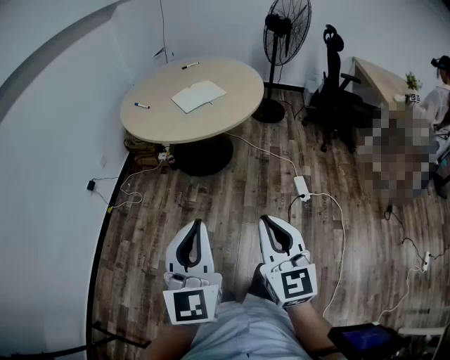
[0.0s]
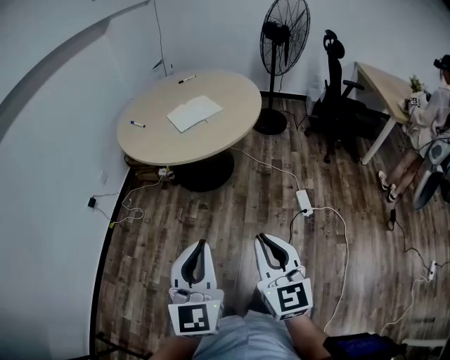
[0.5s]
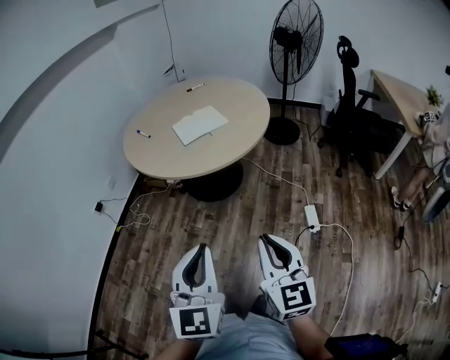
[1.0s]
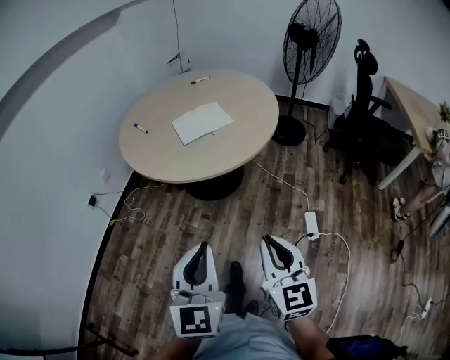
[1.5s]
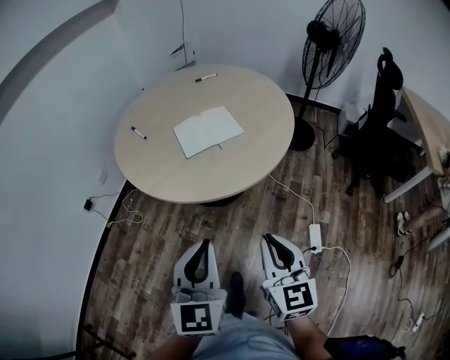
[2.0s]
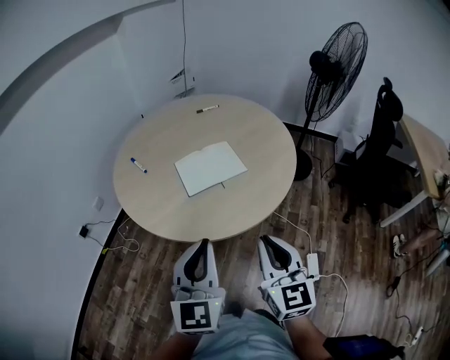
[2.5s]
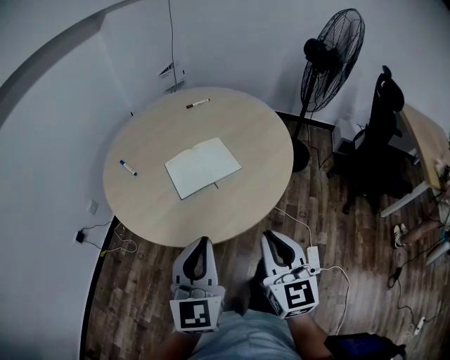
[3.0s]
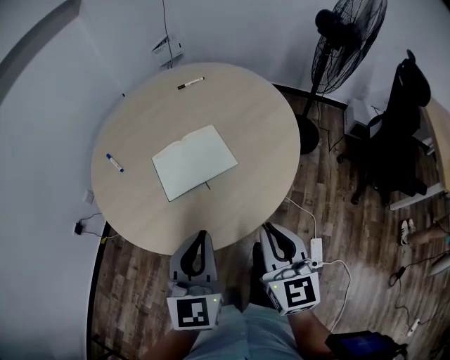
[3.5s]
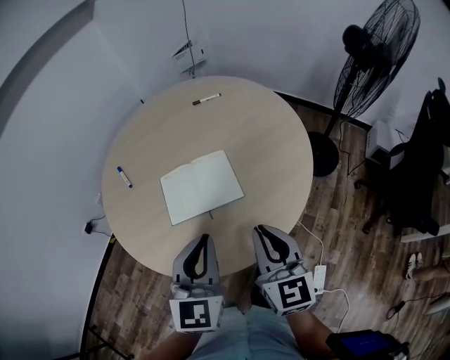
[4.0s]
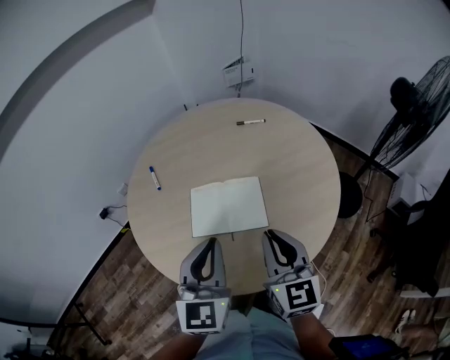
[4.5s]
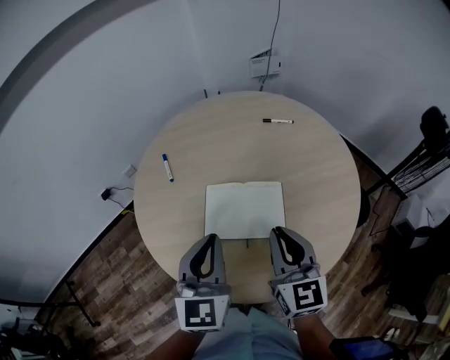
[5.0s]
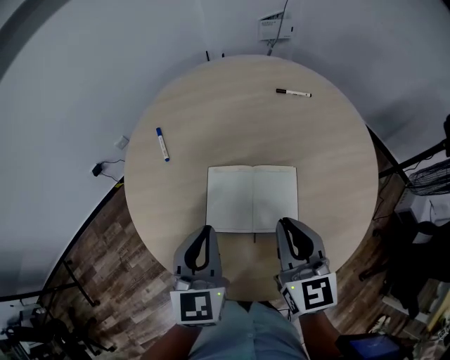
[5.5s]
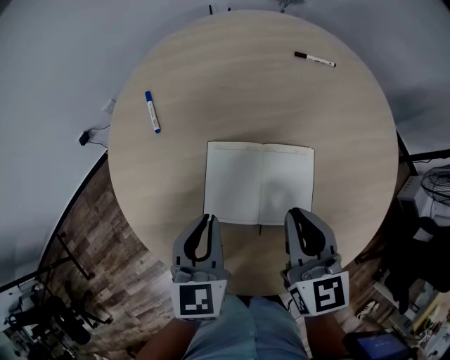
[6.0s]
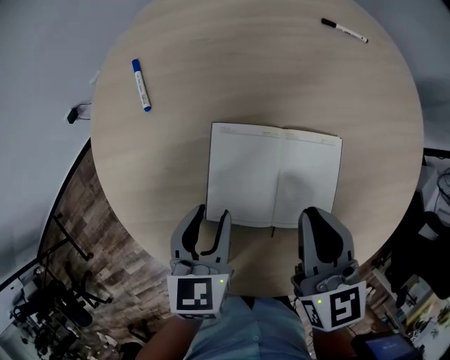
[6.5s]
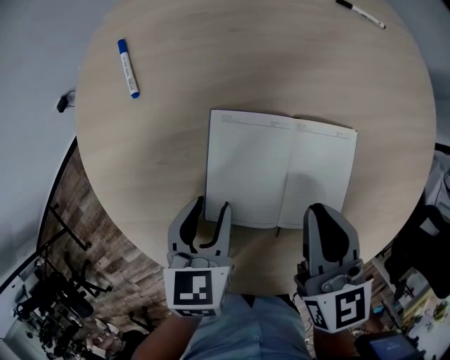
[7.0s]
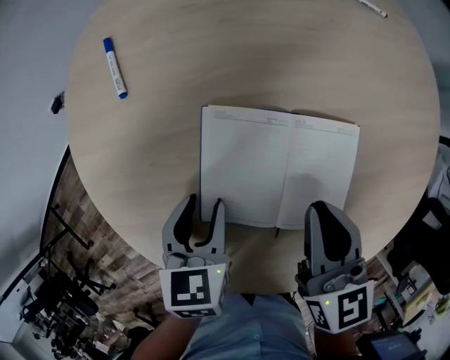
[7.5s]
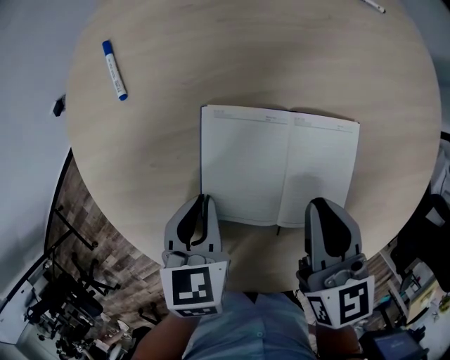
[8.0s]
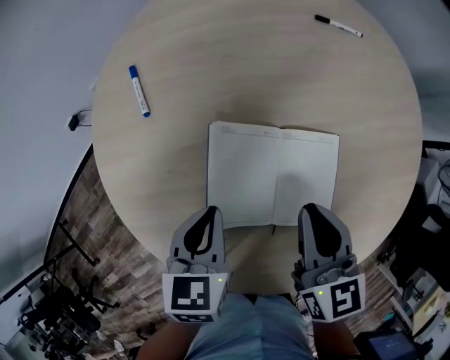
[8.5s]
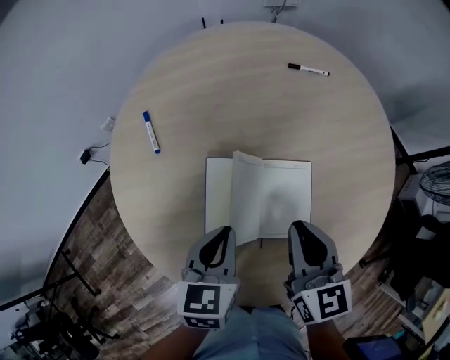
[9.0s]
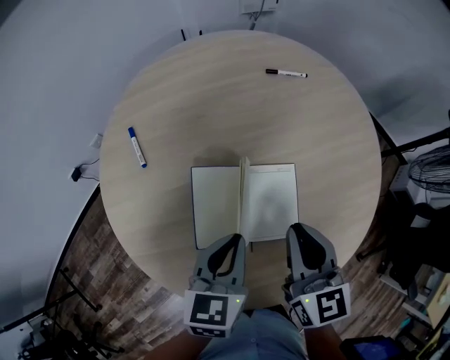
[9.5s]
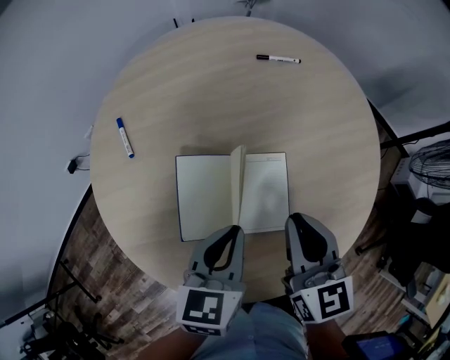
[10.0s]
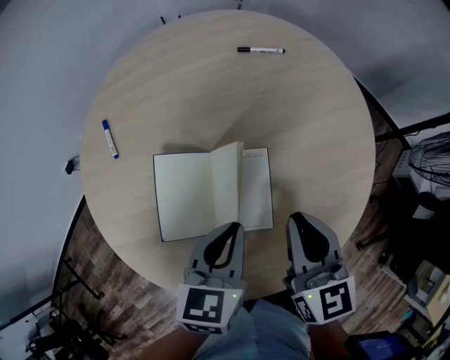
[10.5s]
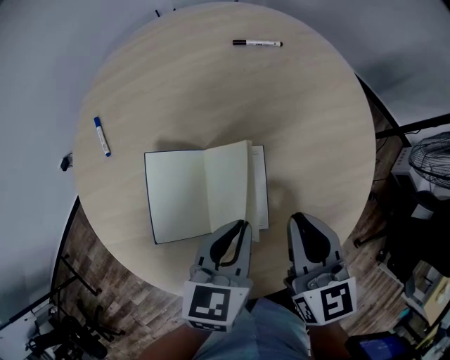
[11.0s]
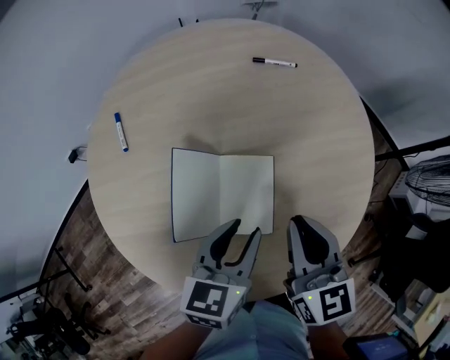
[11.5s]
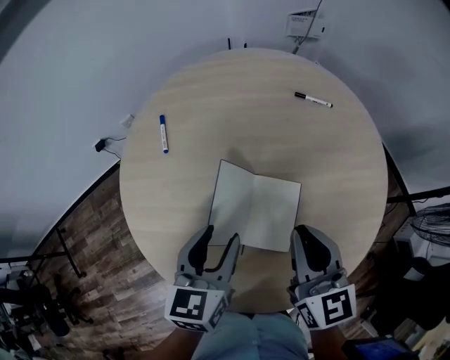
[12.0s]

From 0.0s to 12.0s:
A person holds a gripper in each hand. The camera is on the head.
From 0.0s to 2.0s: The two grippers travel together, forward, approximately 40 cm.
From 2.0s to 4.0s: The pair of grippers is taken forward, about 40 cm.
From 4.0s to 6.0s: The right gripper moves forward and downward, some 30 cm, and rotates approximately 20 degrees. Meanwhile the left gripper is displaced forward, downward and to the left by some 30 cm, and rotates some 30 degrees.
From 6.0s to 8.0s: The grippers both shift downward by some 15 cm. The left gripper turns by roughly 20 degrees, and opens, then closes again.
From 8.0s to 10.0s: The right gripper goes some 15 cm upward and to the right, while the left gripper heads upward and to the right, covering about 20 cm, and swivels roughly 30 degrees.
From 10.0s to 12.0s: The left gripper moves some 10 cm to the right and comes back, and opens. The right gripper reaches approximately 10 cm to the right, then returns.

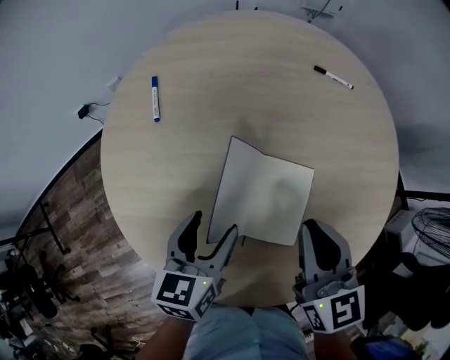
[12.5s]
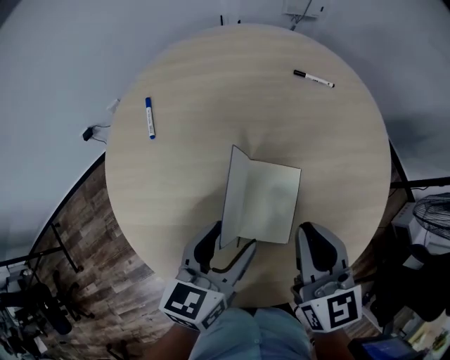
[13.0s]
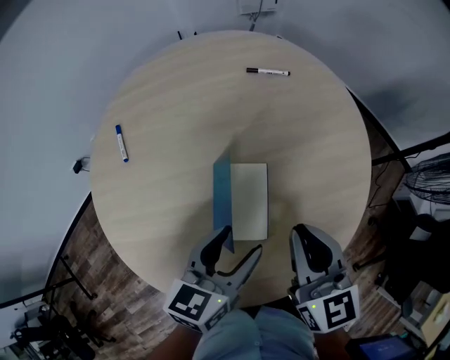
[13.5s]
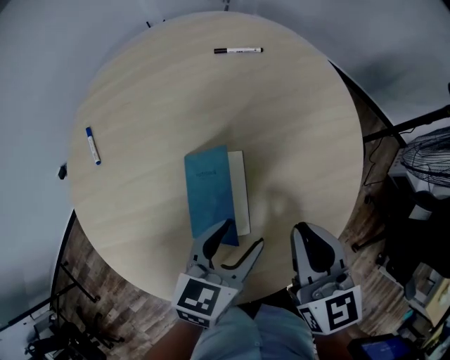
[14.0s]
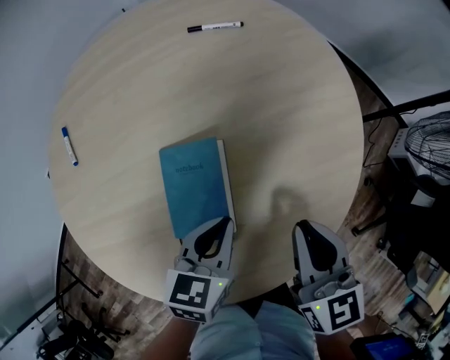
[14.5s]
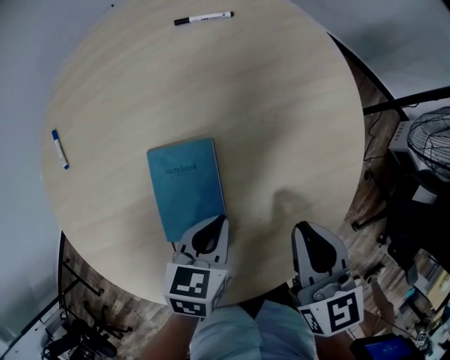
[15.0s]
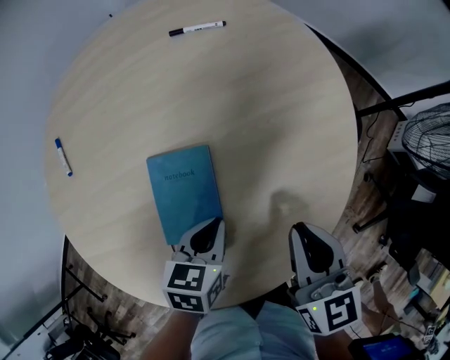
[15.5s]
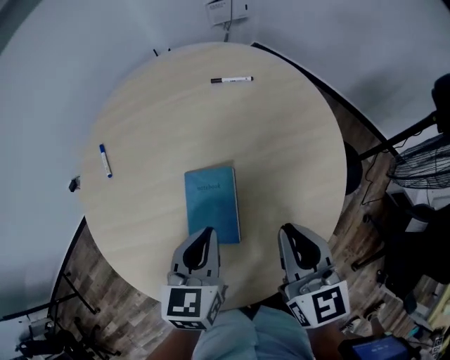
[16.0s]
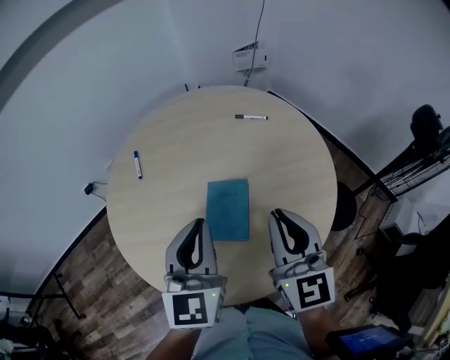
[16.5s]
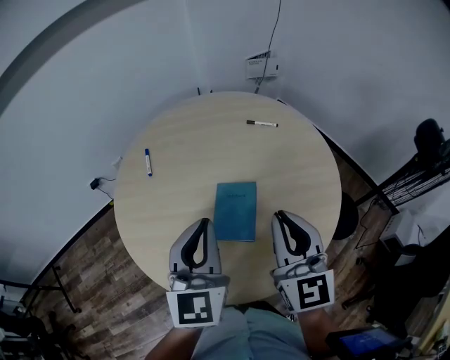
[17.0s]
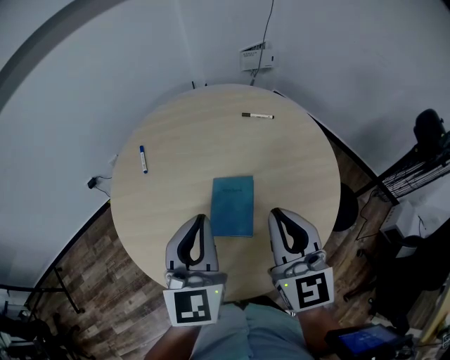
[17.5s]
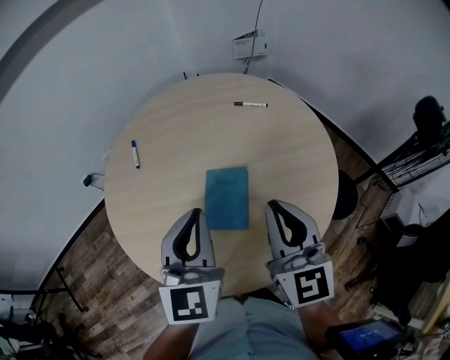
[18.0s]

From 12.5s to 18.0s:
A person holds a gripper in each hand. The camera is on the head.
From 12.5s to 14.5s: The grippers both shift to the right by roughly 20 cm. The left gripper turns by approximately 30 degrees, and closes up. The right gripper turns by some 20 degrees.
From 14.5s to 16.0s: Both grippers move upward, approximately 10 cm. The left gripper rotates about 20 degrees.
From 16.0s to 18.0s: The left gripper travels upward by roughly 15 cm, and turns by some 30 degrees; the right gripper goes roughly 15 cm upward and to the left, and turns by approximately 20 degrees.

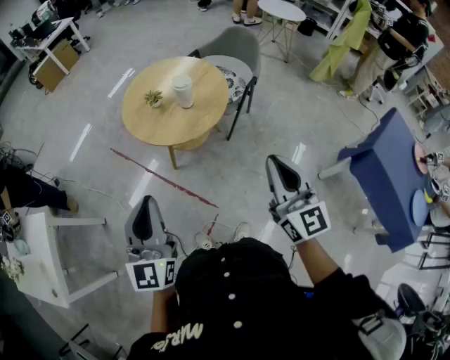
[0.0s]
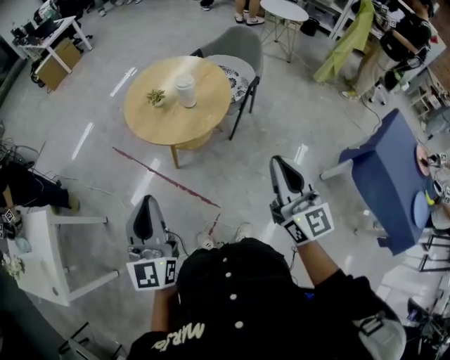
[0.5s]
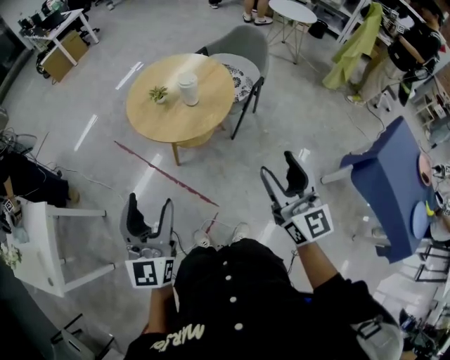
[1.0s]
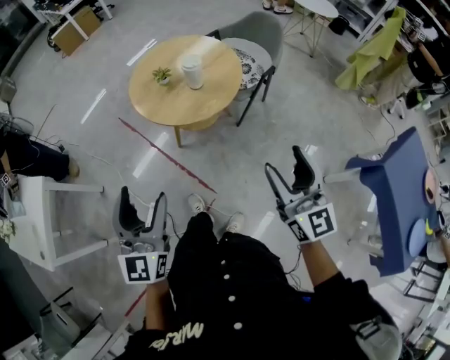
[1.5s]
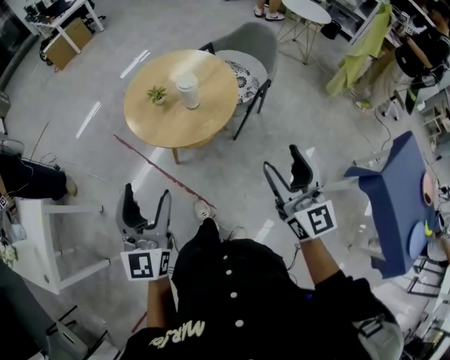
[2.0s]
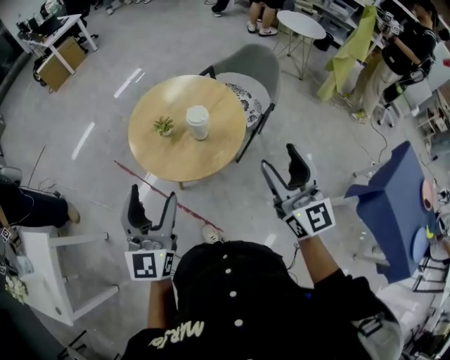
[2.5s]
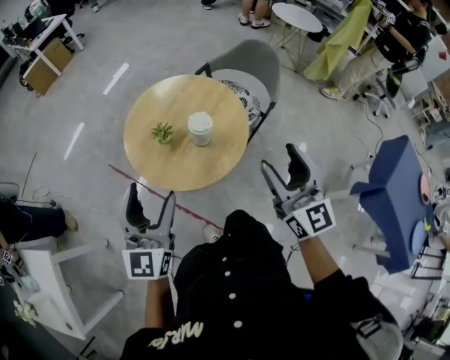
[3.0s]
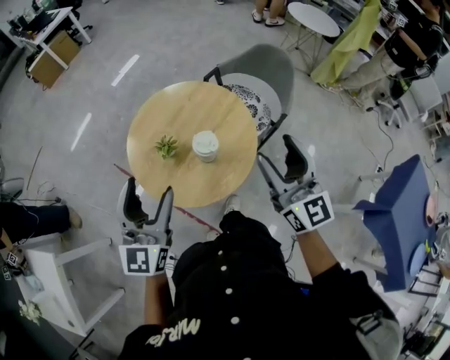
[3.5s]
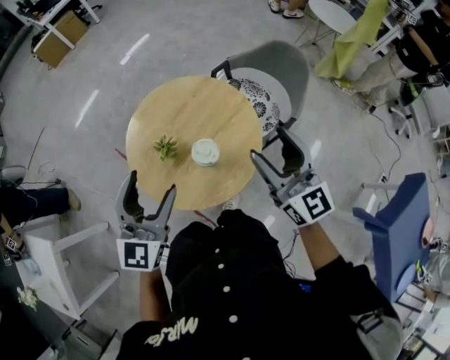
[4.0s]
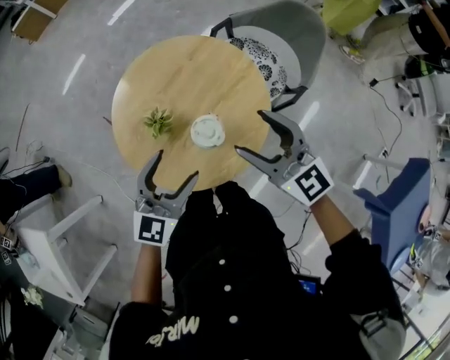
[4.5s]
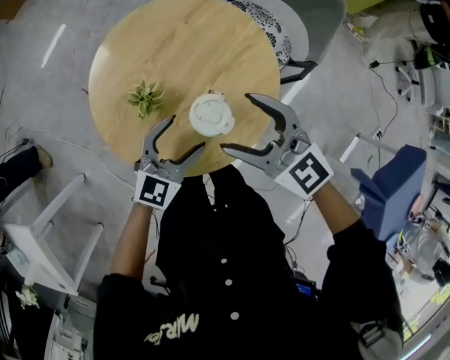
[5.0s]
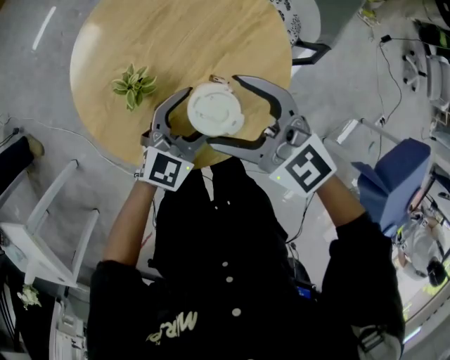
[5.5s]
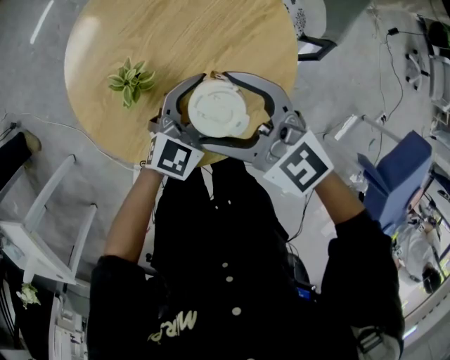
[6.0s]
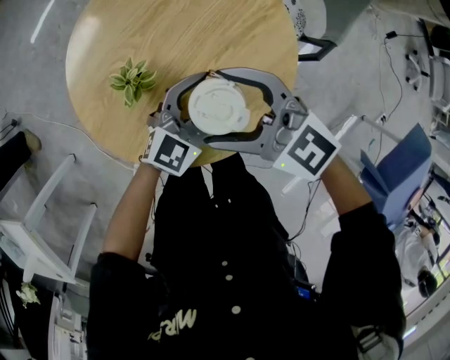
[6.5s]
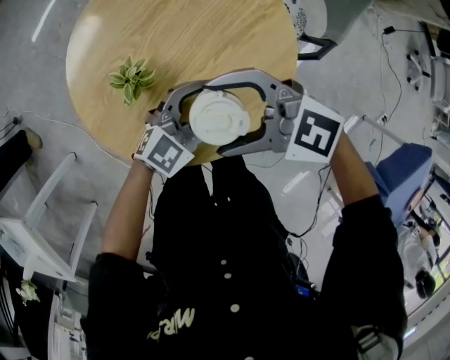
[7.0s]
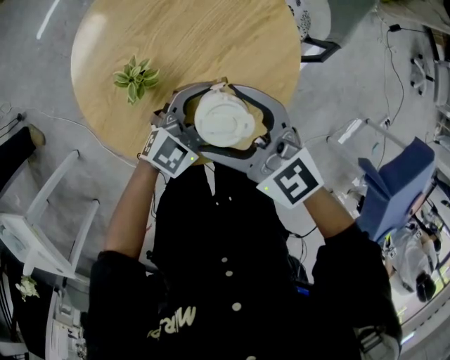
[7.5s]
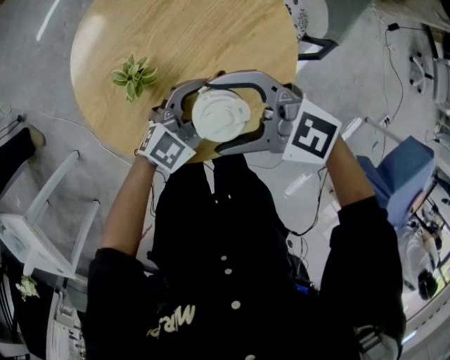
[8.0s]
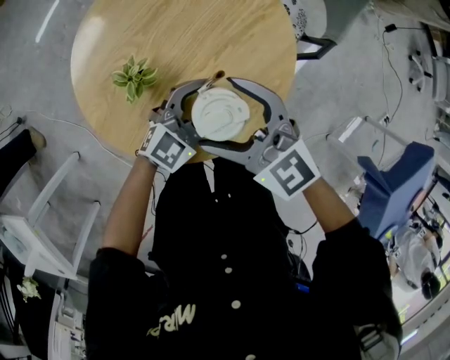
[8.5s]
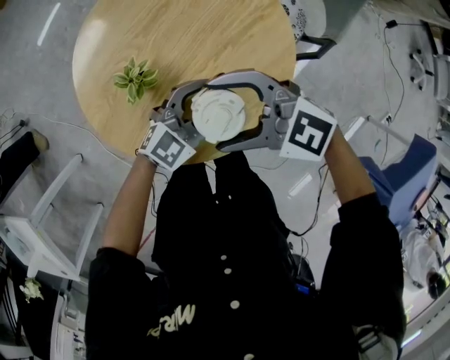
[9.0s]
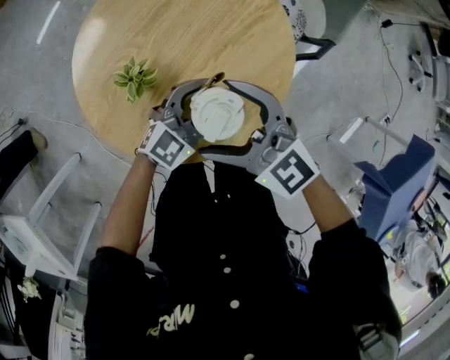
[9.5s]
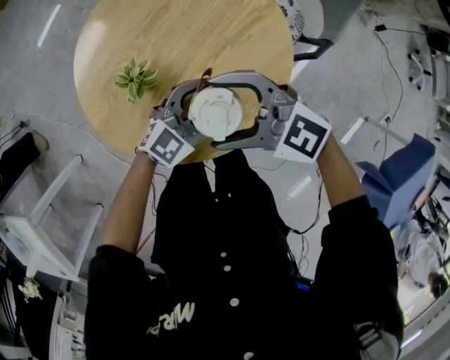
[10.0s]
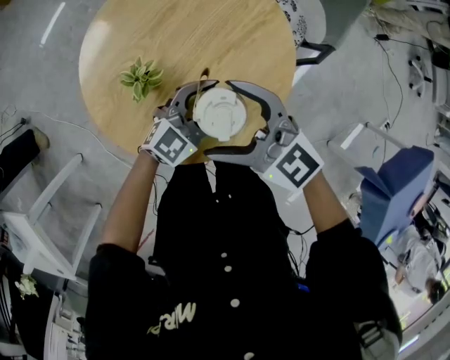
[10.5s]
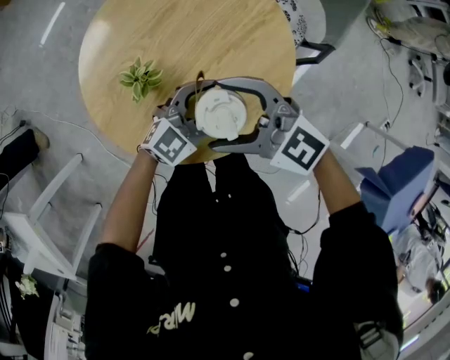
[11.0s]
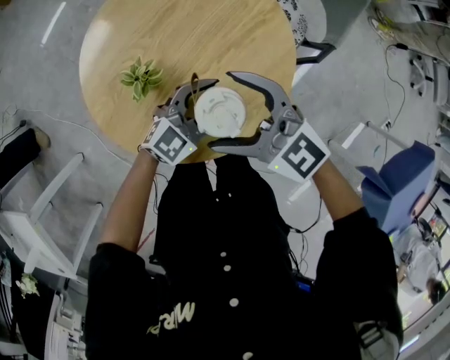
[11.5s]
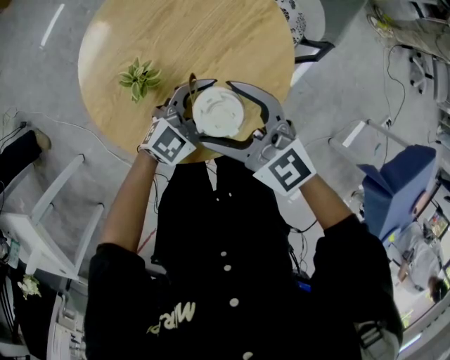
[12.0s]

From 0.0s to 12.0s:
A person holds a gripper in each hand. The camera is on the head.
From 0.0s to 2.0s: The left gripper is displaced forward by about 10 cm, and opens up. Meanwhile the right gripper goes roughly 10 cm forward and to the right, and opens.
From 2.0s to 4.0s: The grippers both shift forward by some 40 cm.
From 4.0s to 6.0s: The right gripper moves downward and to the left, approximately 30 cm, and rotates roughly 40 degrees. Meanwhile the left gripper is displaced downward and to the right by approximately 35 cm, and changes its angle by some 30 degrees.
From 6.0s to 8.0s: The right gripper changes its angle by approximately 30 degrees.
From 10.0s to 12.0s: The right gripper changes its angle by some 30 degrees.
